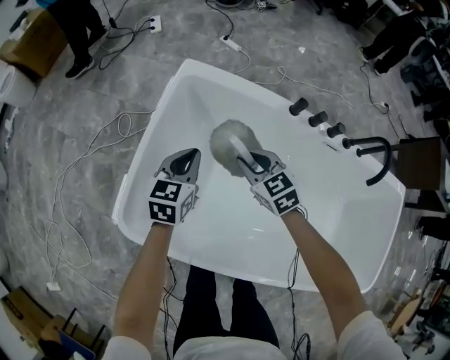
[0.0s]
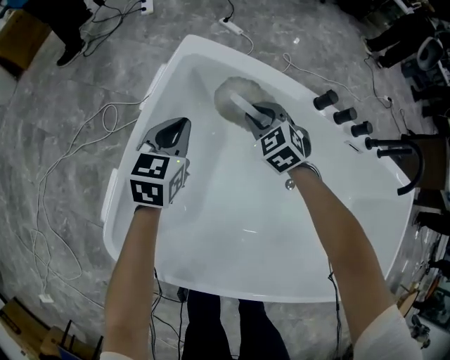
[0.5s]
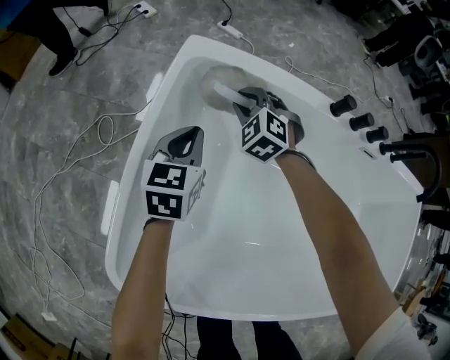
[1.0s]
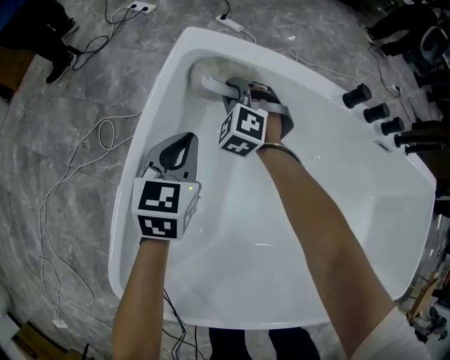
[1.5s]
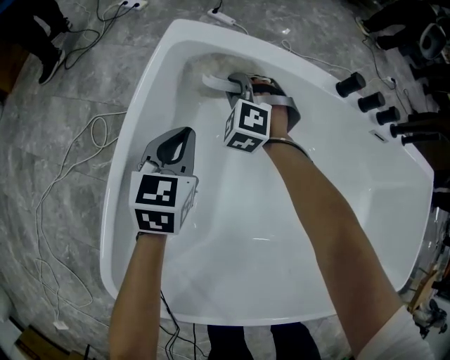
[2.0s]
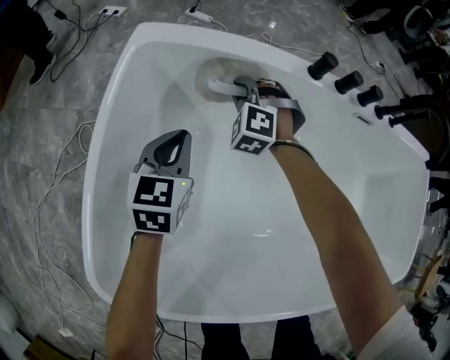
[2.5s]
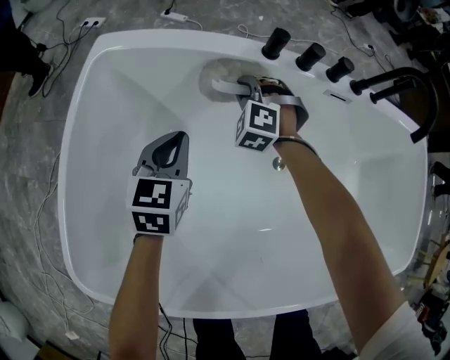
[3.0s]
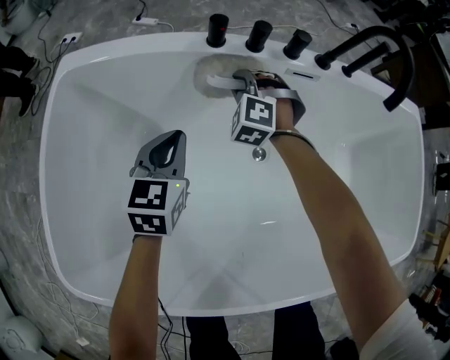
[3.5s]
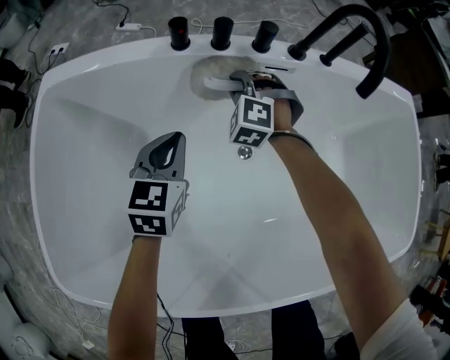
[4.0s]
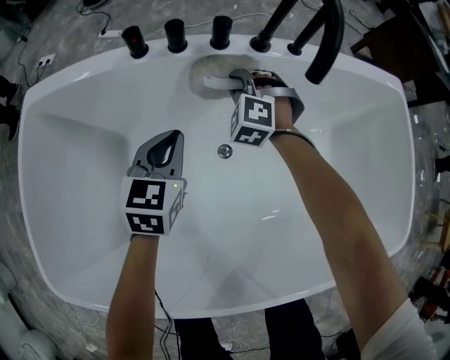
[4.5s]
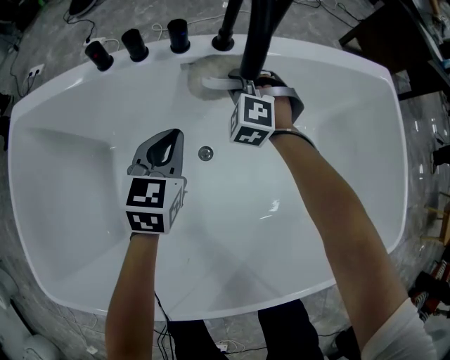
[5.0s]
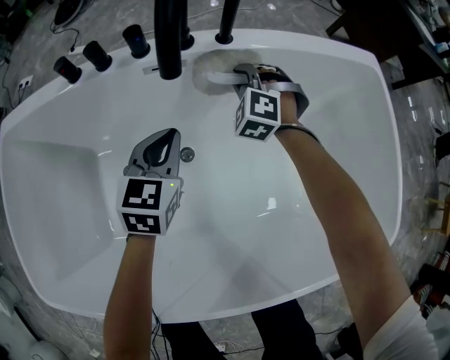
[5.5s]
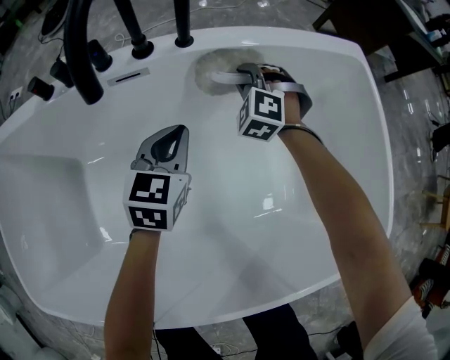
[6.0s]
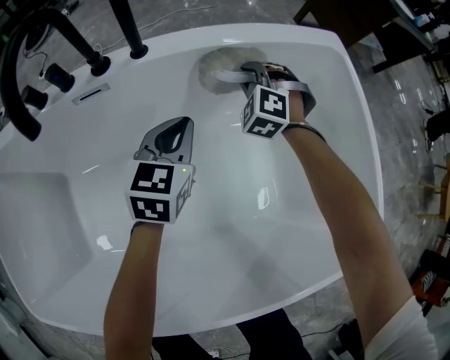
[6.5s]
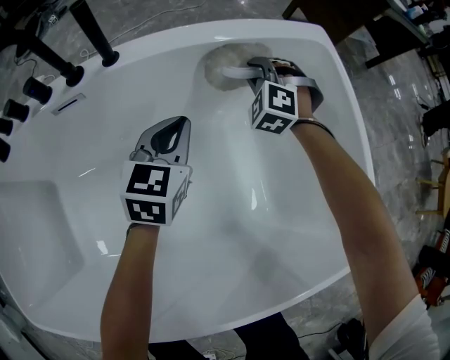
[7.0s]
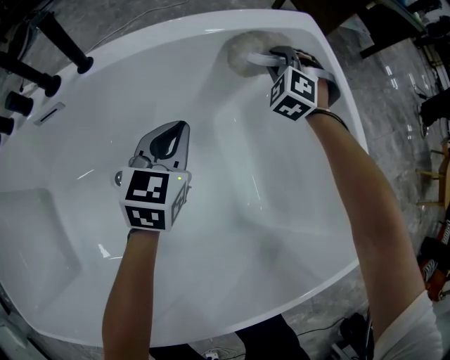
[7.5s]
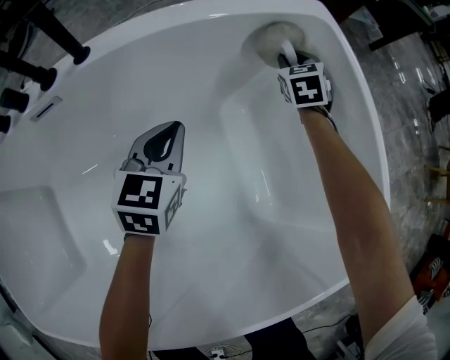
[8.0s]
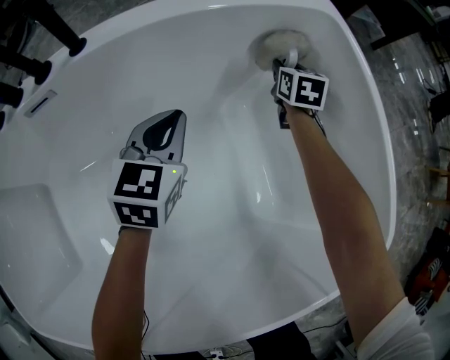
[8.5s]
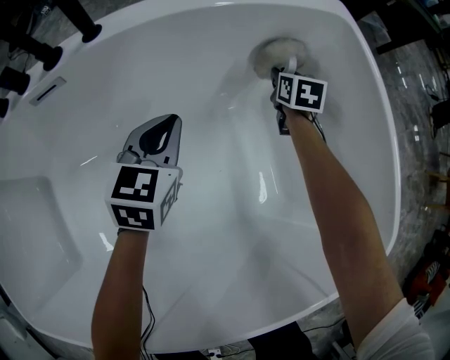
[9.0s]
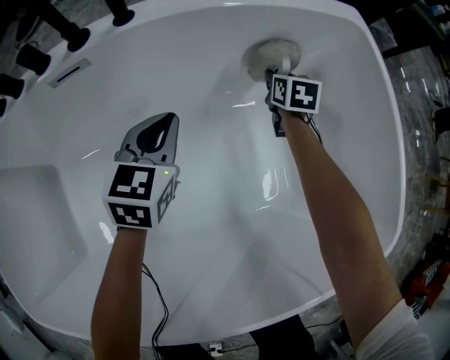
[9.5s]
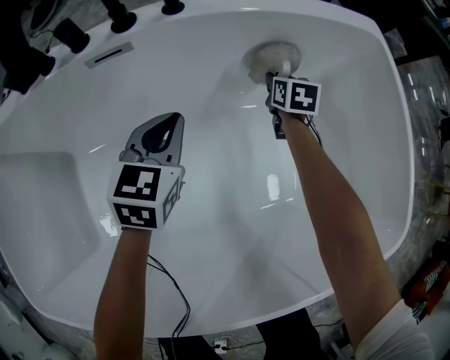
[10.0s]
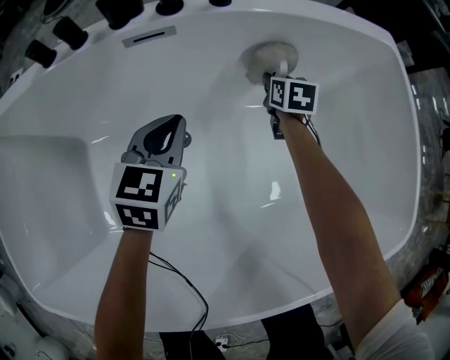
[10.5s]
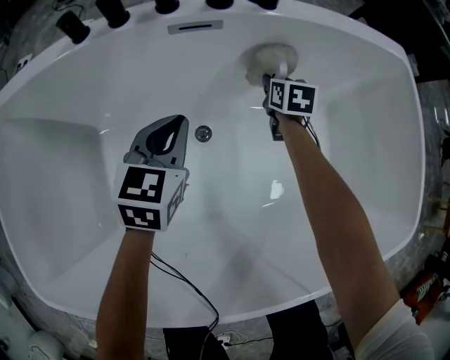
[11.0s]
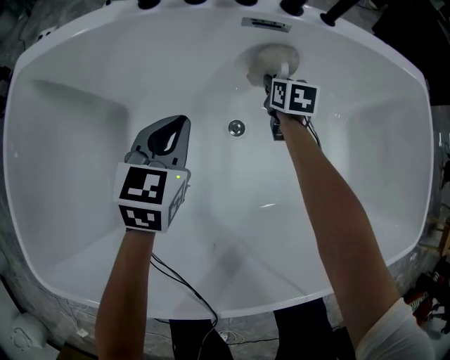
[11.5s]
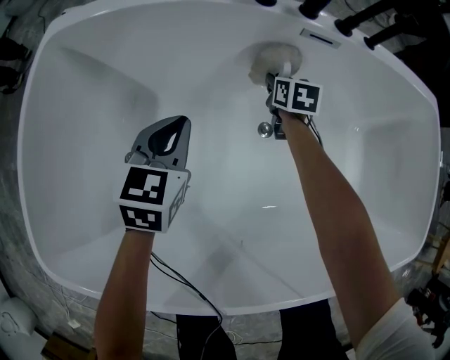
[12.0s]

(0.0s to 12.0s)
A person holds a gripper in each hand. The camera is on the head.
0.0s - 2.0s: The left gripper shifts roughly 20 cm downward and forward. The right gripper is displaced forward, downward and to the left by roughly 30 cm, and rolls counterclockwise, seen from behind, by some 50 degrees.
2.0s - 4.0s: Both grippers travel together to the right, some 40 cm.
4.0s - 6.0s: Both grippers move to the right, approximately 35 cm.
6.0s - 8.0s: The left gripper shifts approximately 15 cm to the right and forward, while the right gripper shifts roughly 35 cm to the right and forward, and rolls clockwise, seen from behind, by some 60 degrees.
8.0s - 10.0s: The two grippers go approximately 20 cm to the left and backward. The right gripper changes its angle by about 30 degrees.
10.0s - 12.0s: The two grippers travel together, to the left, approximately 40 cm.

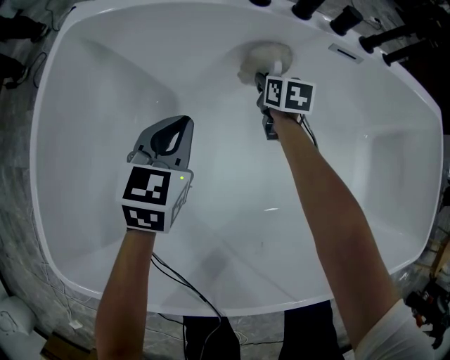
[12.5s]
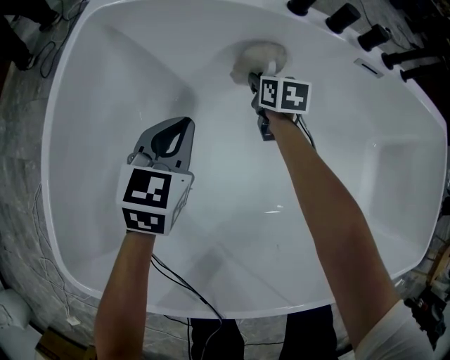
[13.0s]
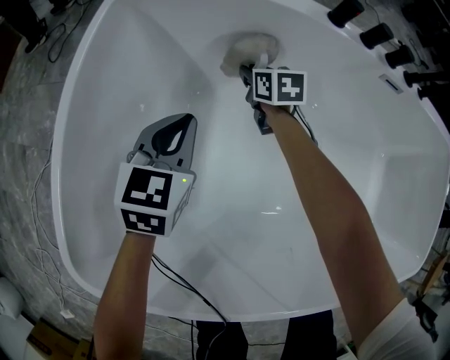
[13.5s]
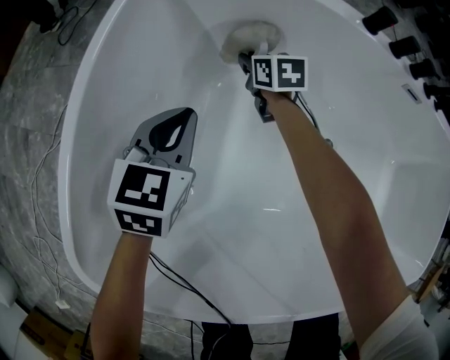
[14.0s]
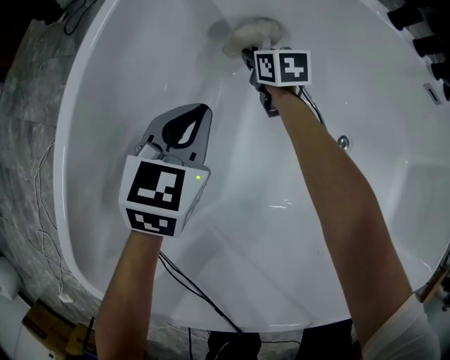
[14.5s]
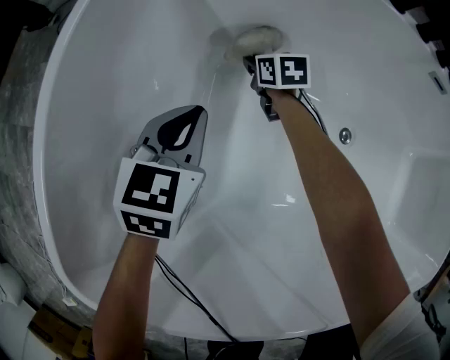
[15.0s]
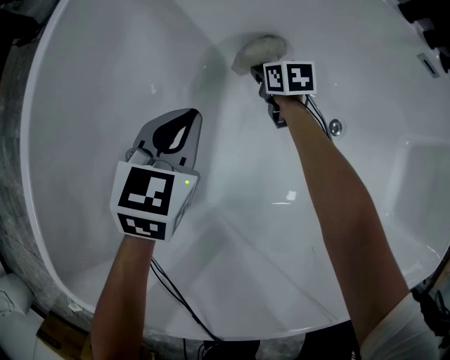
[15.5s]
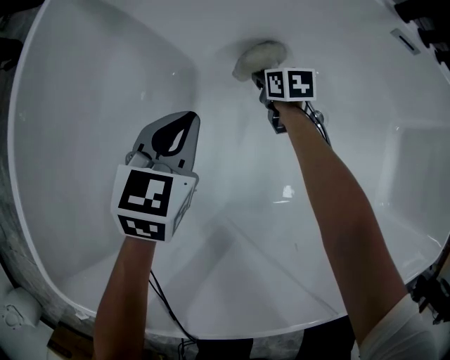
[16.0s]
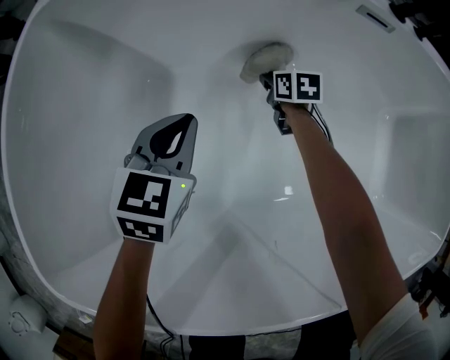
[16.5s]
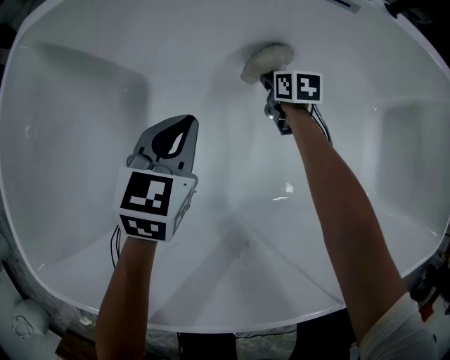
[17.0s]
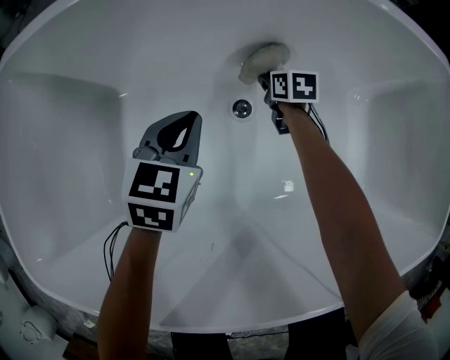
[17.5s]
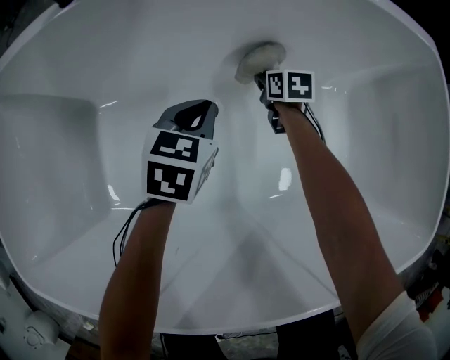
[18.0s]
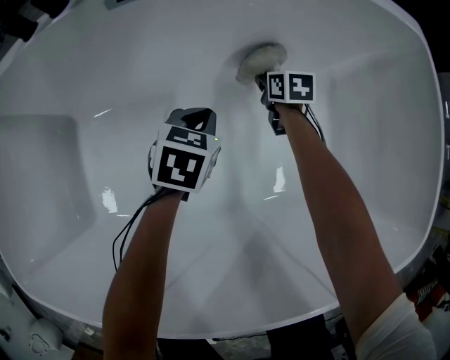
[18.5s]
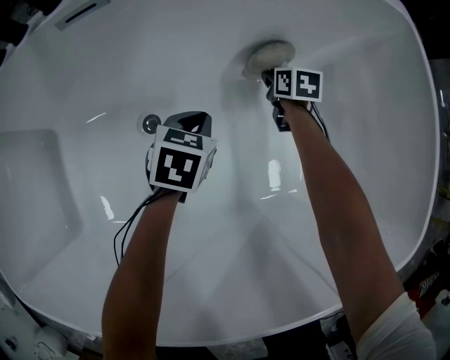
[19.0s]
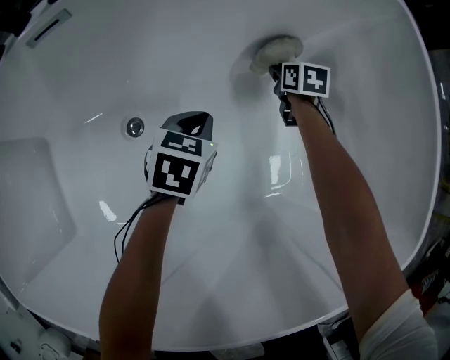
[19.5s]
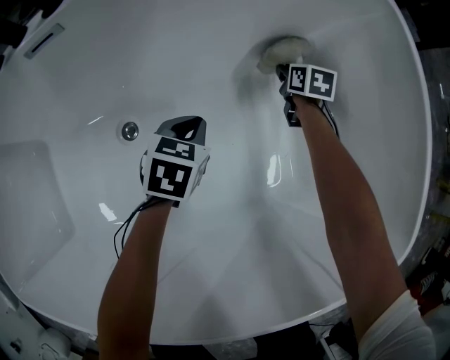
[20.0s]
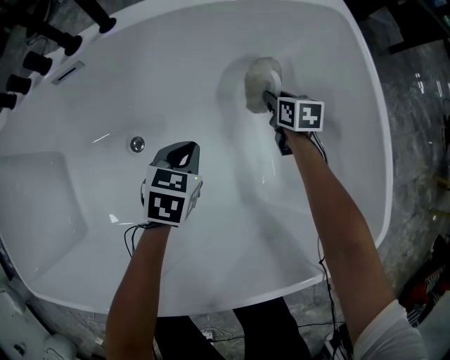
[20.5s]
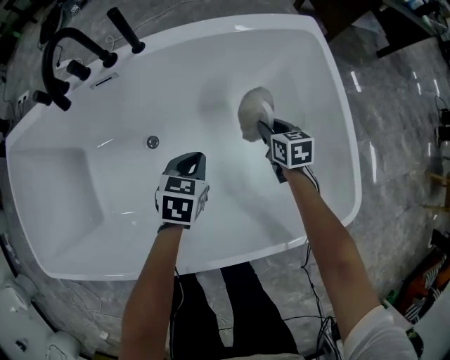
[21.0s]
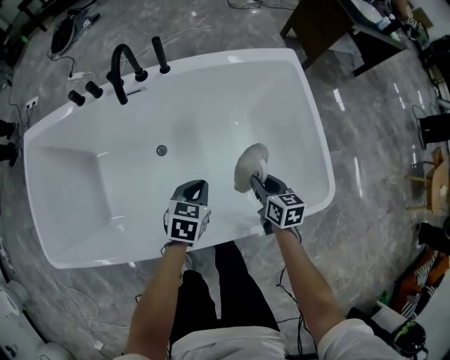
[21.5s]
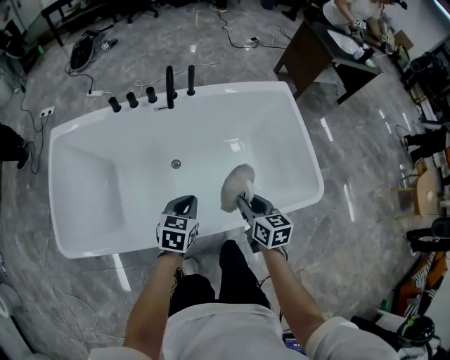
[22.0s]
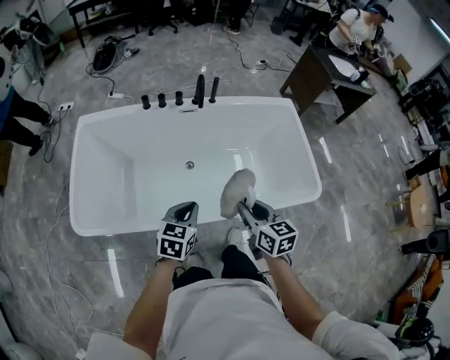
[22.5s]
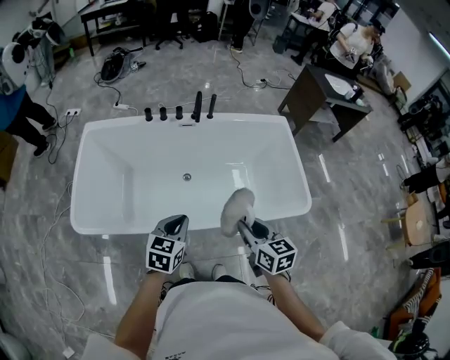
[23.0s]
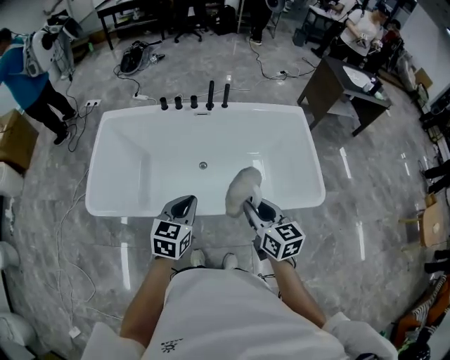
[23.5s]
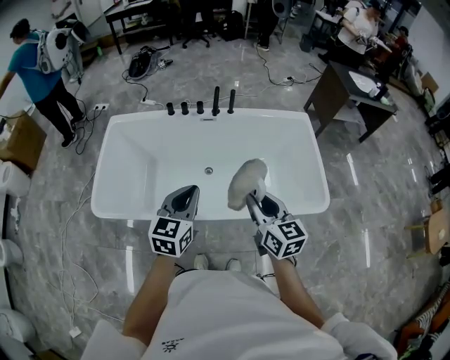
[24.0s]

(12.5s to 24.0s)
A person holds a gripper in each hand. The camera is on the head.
12.5s - 14.5s: The right gripper shifts roughly 30 cm to the left, and changes its angle by roughly 20 degrees. The left gripper goes some 20 cm to the left.
14.5s - 16.5s: The left gripper goes some 20 cm to the right; the right gripper heads to the right, covering about 30 cm, and changes its angle by about 20 degrees.
16.5s - 18.5s: Both grippers are carried to the right, about 50 cm.
18.5s - 20.0s: The left gripper shifts approximately 5 cm to the right. The right gripper goes roughly 15 cm to the right.
20.0s - 22.0s: Both grippers move upward and backward, roughly 60 cm. The right gripper turns by about 20 degrees.
22.0s - 24.0s: The two grippers go approximately 25 cm upward and backward. The left gripper changes its angle by approximately 30 degrees. The right gripper swivels roughly 20 degrees.

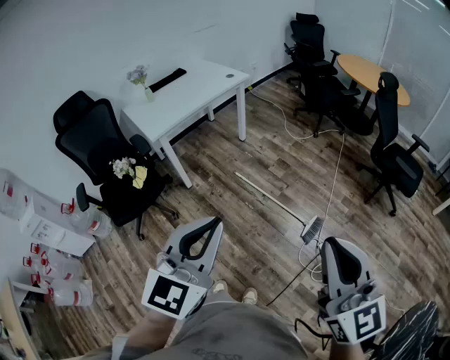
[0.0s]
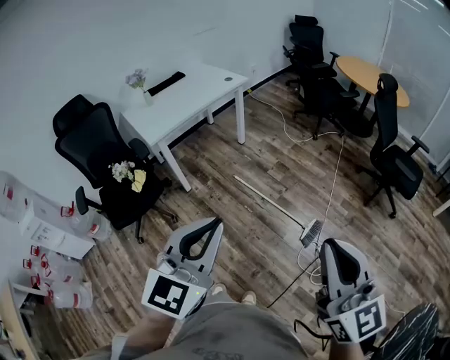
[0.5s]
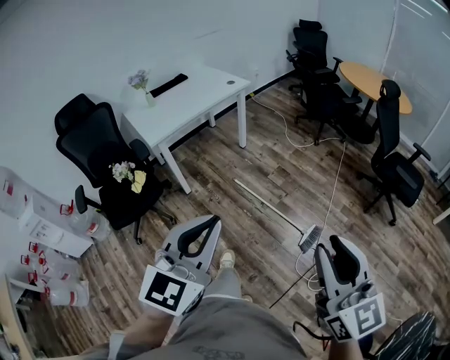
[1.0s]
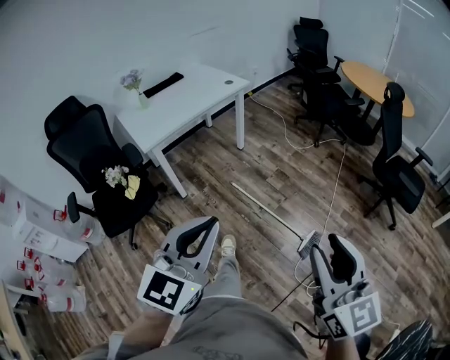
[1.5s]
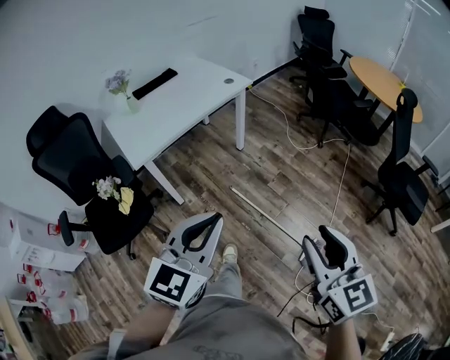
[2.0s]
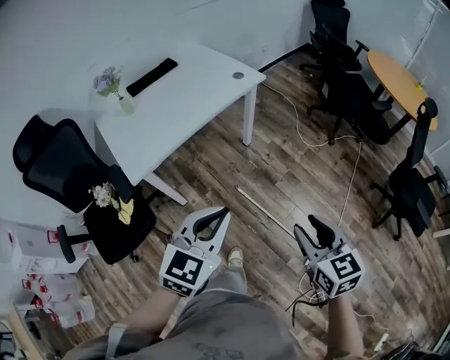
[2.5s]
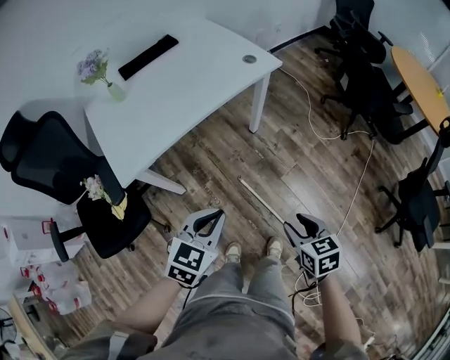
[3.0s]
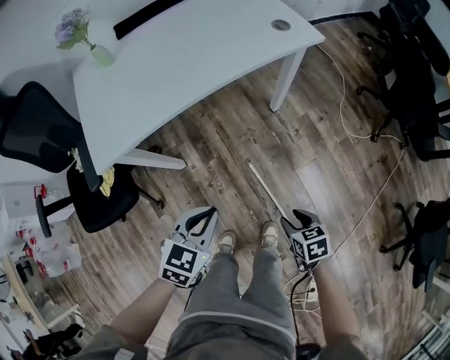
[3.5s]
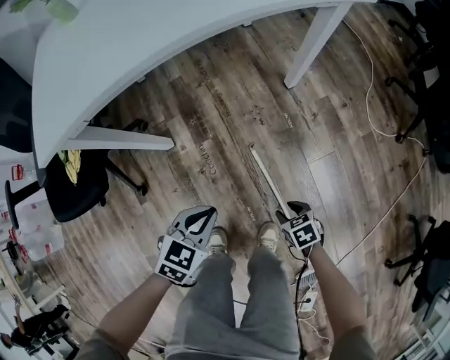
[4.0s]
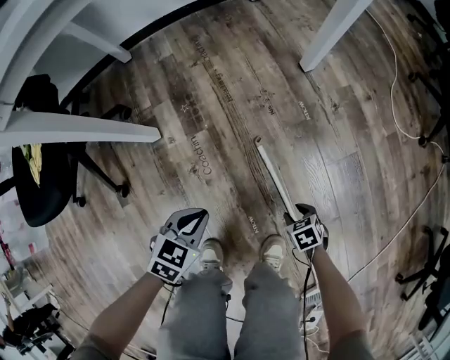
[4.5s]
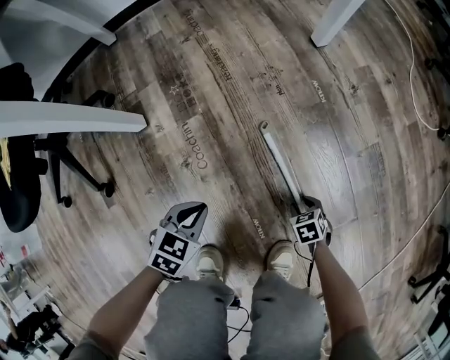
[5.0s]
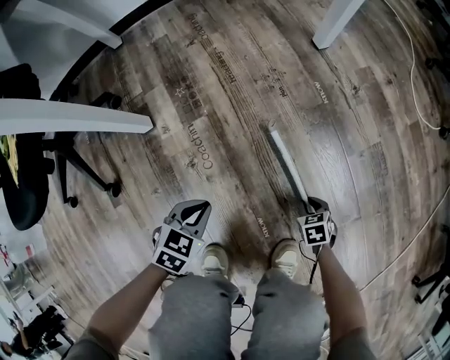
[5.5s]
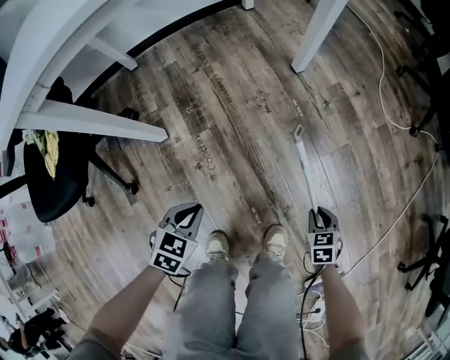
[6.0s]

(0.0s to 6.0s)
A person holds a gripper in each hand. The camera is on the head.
0.0s - 2.0s: Both grippers travel together forward, about 25 cm. The right gripper opens up.
2.0s - 4.0s: Both grippers travel together downward, roughly 70 cm. The left gripper tilts its fingers about 40 degrees downward, while the right gripper tips its fingers downward by roughly 50 degrees.
4.0s - 6.0s: The left gripper goes some 15 cm downward; the right gripper travels downward and back again, roughly 35 cm each way, changes its angle by approximately 30 degrees, and closes its fingers.
